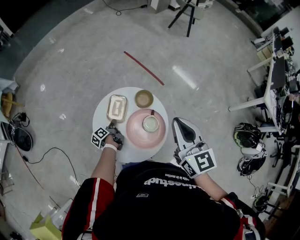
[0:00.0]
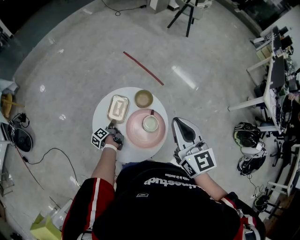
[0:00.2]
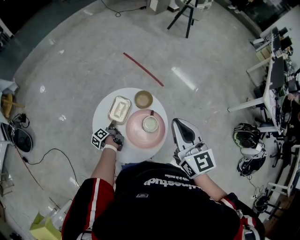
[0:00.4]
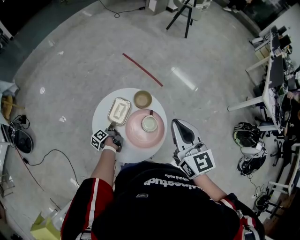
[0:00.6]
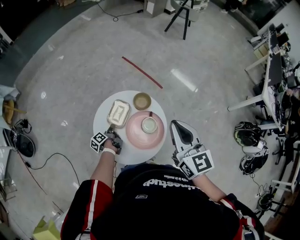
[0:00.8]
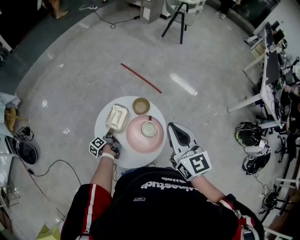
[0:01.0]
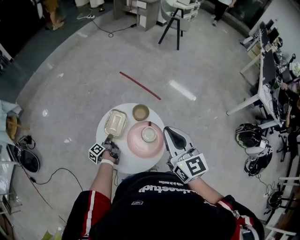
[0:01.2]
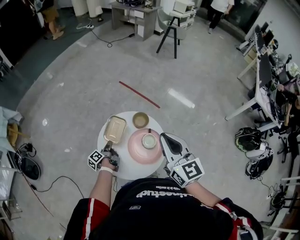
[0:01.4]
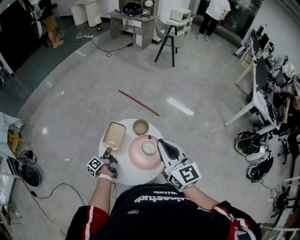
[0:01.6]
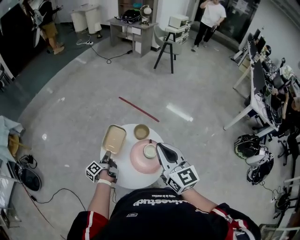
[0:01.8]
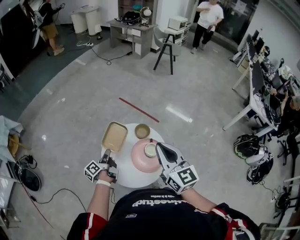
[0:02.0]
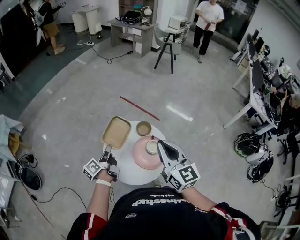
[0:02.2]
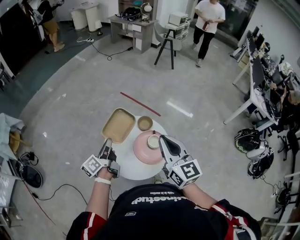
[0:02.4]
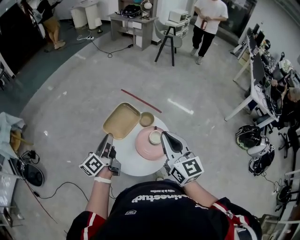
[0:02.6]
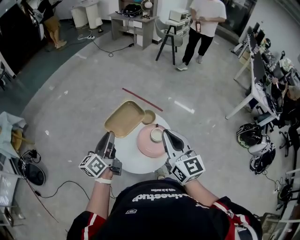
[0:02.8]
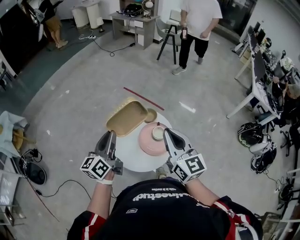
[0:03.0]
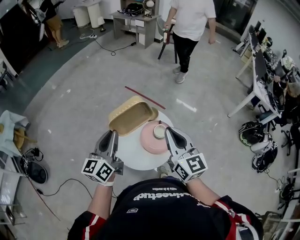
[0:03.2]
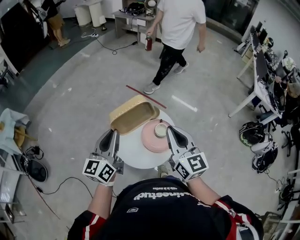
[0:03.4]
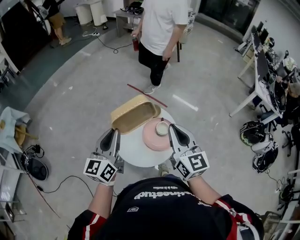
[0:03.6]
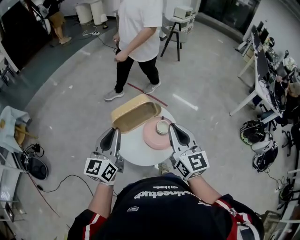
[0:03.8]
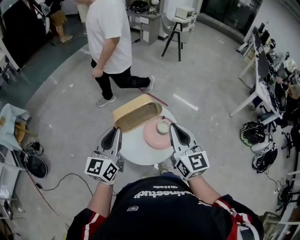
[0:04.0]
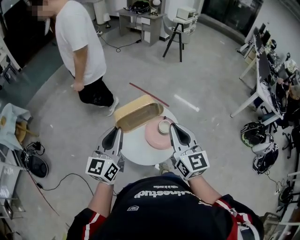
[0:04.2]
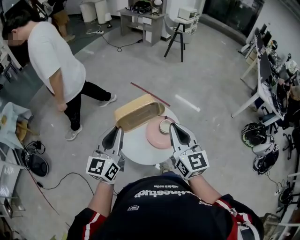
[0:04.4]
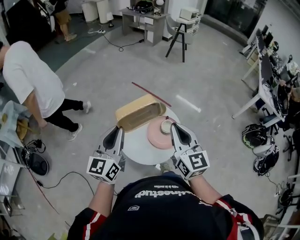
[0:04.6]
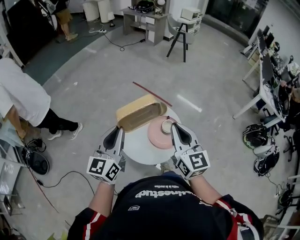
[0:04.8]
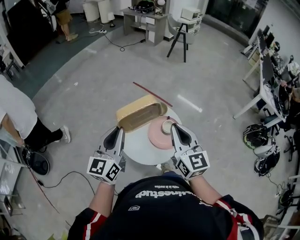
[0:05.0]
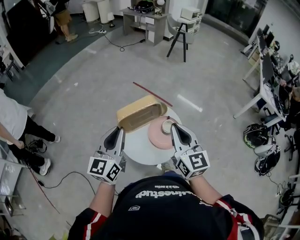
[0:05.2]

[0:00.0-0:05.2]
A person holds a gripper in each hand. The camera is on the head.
0.0 to 1.8 s: The right gripper heads backward and upward, covering about 10 cm, while the left gripper is displaced upward by some 20 cm.
1.8 to 3.4 s: The left gripper shifts roughly 30 cm upward and backward, and twists approximately 60 degrees clockwise, seen from behind; the right gripper heads backward, covering approximately 10 cm.
3.4 to 5.2 s: There are only small adjustments of the grippers.

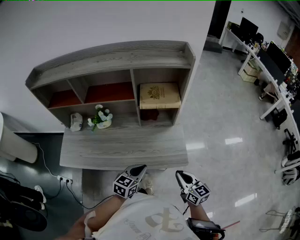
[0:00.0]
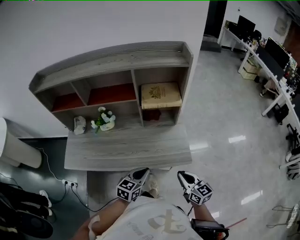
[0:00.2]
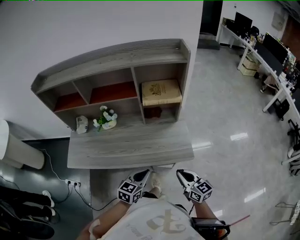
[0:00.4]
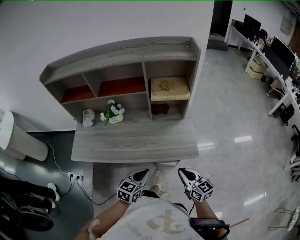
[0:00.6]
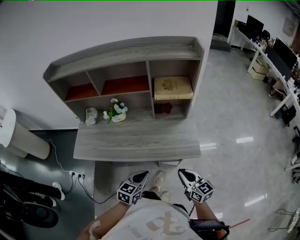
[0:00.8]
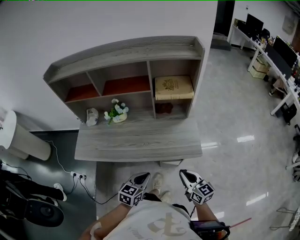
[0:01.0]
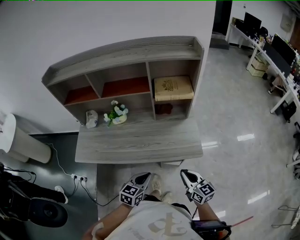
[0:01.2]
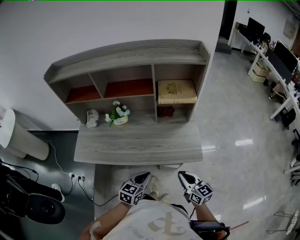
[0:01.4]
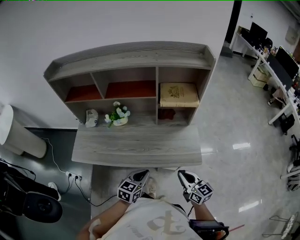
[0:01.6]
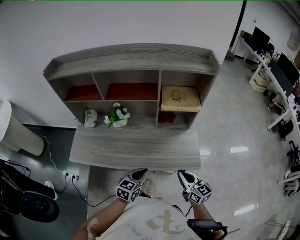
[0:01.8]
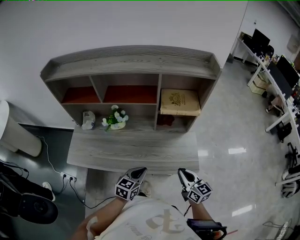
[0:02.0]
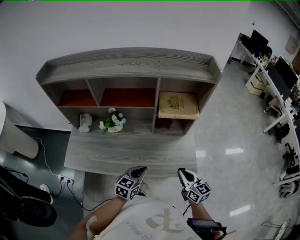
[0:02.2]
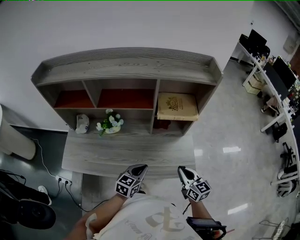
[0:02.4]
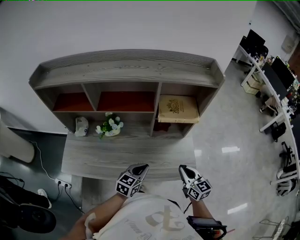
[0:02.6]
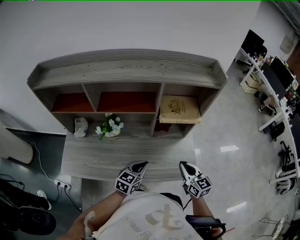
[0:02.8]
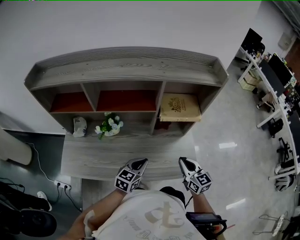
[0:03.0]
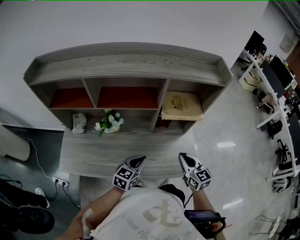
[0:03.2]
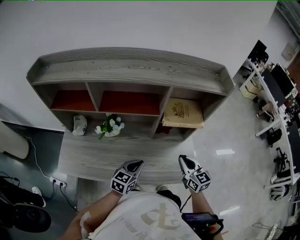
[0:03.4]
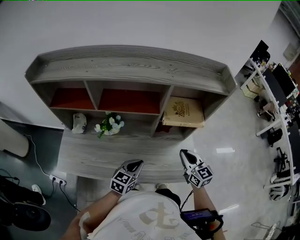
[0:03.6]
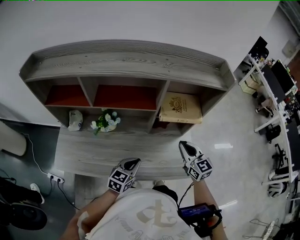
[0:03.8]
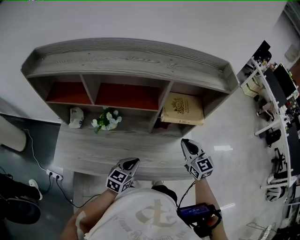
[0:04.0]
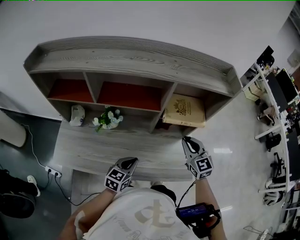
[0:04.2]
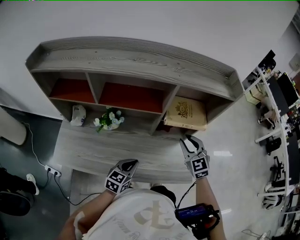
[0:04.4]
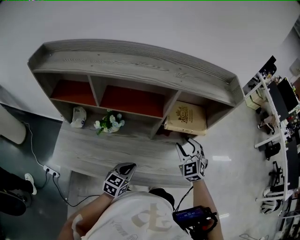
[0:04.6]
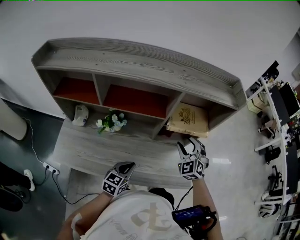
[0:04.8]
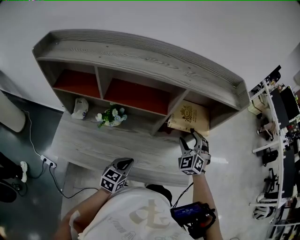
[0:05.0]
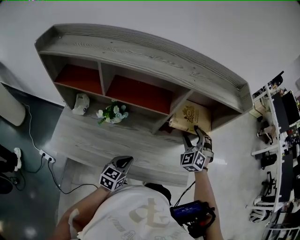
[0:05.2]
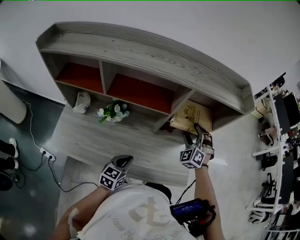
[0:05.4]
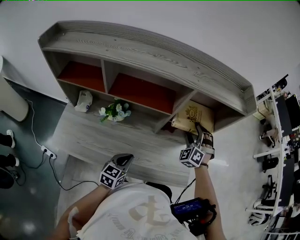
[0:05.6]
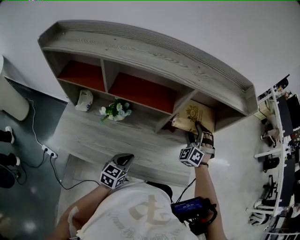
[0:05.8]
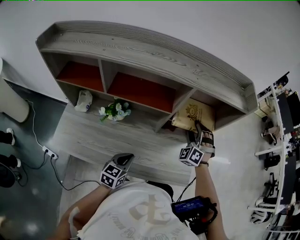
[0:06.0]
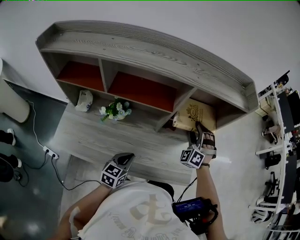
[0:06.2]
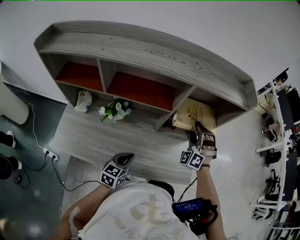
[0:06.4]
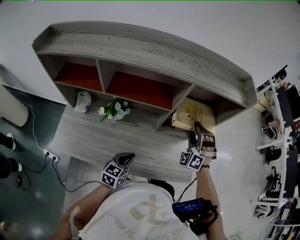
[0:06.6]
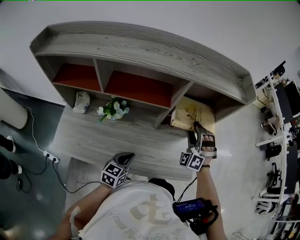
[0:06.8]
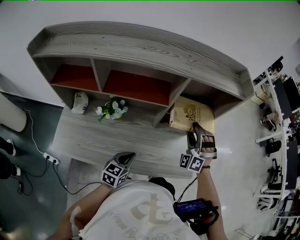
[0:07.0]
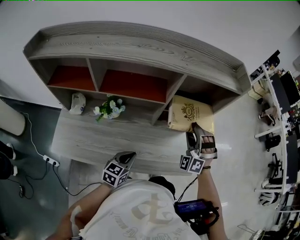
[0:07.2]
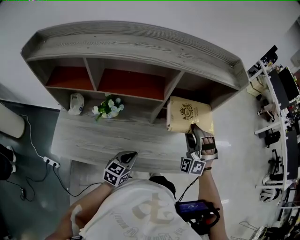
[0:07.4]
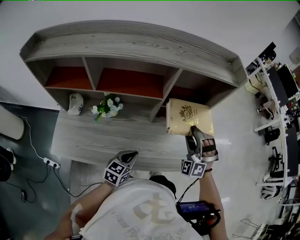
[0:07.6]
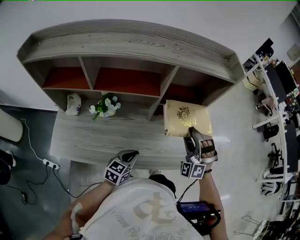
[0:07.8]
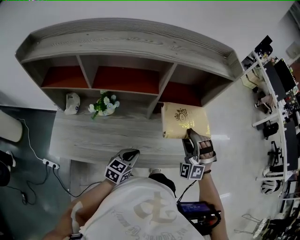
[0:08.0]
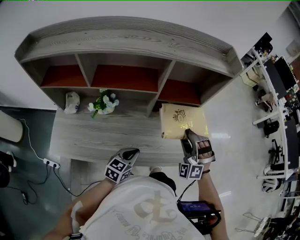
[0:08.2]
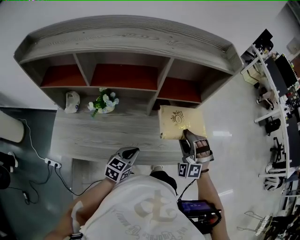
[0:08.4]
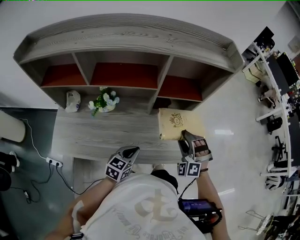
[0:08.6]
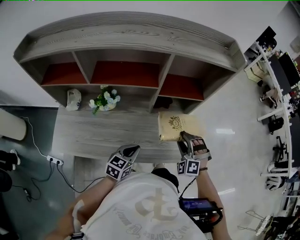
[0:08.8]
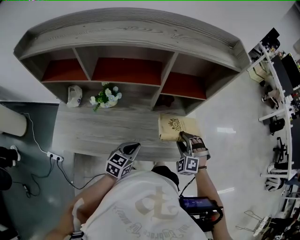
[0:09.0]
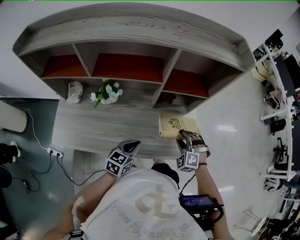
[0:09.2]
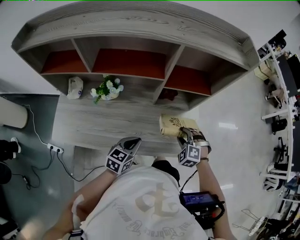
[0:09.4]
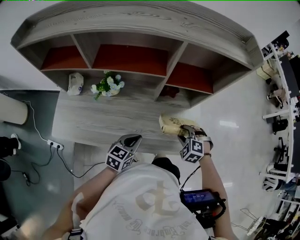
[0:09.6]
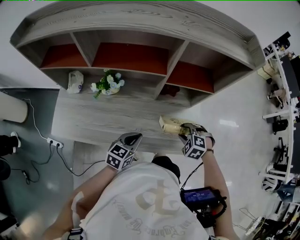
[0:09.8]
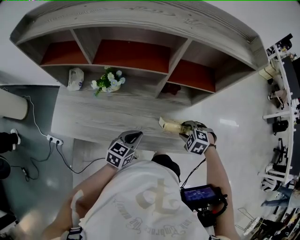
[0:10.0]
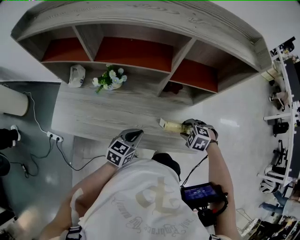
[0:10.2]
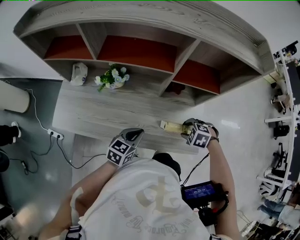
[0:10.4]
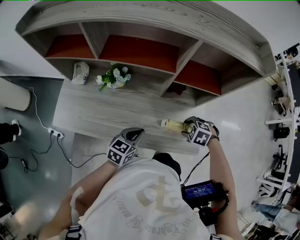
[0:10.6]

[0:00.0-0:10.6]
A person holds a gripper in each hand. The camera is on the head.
0.0 to 1.6 s: The right gripper goes roughly 10 cm to the left. Meanwhile the left gripper heads to the left and backward, covering approximately 10 cm.
1.6 to 3.0 s: The grippers both shift forward by some 15 cm.
3.0 to 4.6 s: The left gripper shifts by some 5 cm. Meanwhile the right gripper moves forward, roughly 15 cm, twists approximately 50 degrees counterclockwise, seen from behind, and opens its fingers.
4.6 to 6.0 s: The right gripper is displaced forward by some 10 cm, and changes its angle by roughly 40 degrees.
6.0 to 7.6 s: The right gripper travels backward by some 10 cm.
7.6 to 9.0 s: The right gripper shifts roughly 15 cm downward, and rotates some 30 degrees.
9.0 to 10.6 s: The right gripper is displaced downward by about 5 cm, and angles its fingers downward, by about 40 degrees.

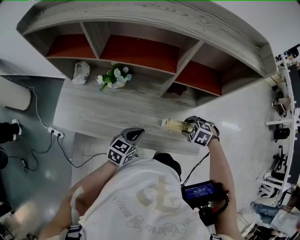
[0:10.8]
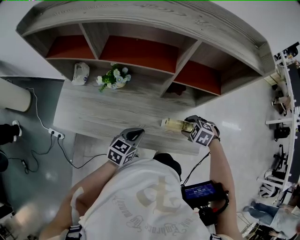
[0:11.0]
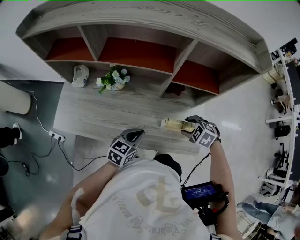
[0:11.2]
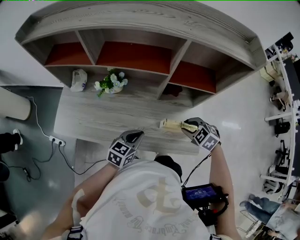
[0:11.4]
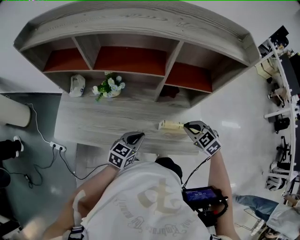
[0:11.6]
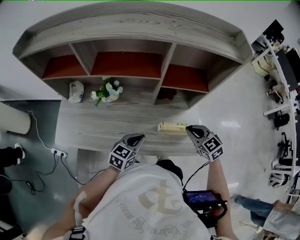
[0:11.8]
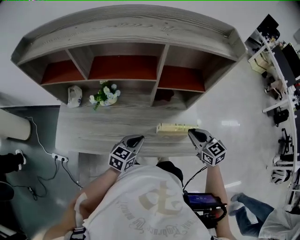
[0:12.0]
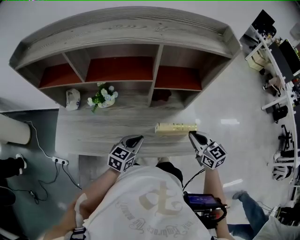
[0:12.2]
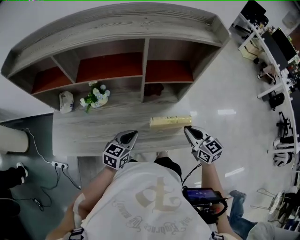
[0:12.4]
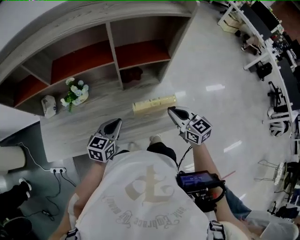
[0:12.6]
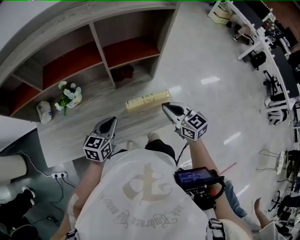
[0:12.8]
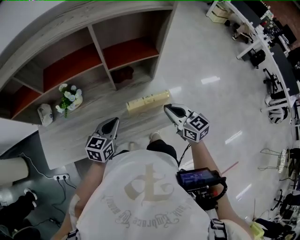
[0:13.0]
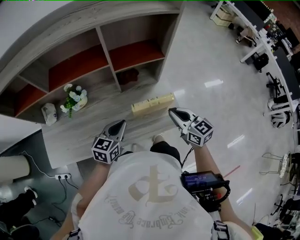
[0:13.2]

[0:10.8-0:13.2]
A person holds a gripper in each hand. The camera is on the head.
10.8 to 12.0 s: The right gripper is displaced upward by approximately 10 cm, tilts its fingers about 50 degrees upward, and closes.
12.0 to 13.2 s: The right gripper is displaced backward by approximately 5 cm.

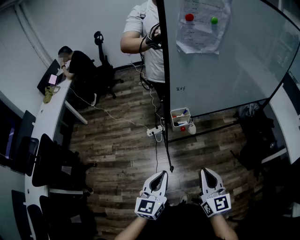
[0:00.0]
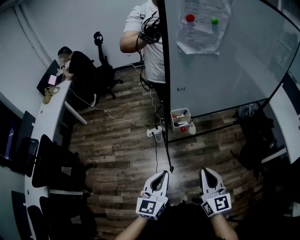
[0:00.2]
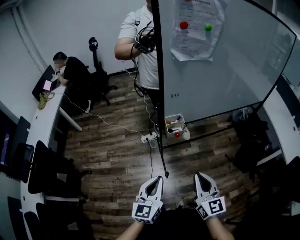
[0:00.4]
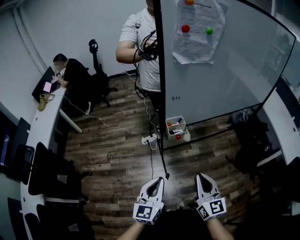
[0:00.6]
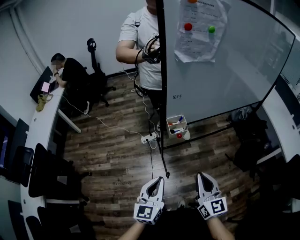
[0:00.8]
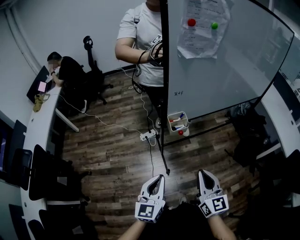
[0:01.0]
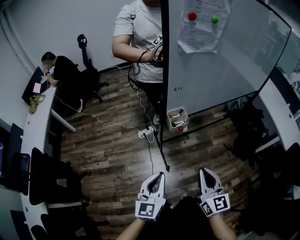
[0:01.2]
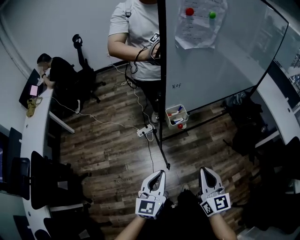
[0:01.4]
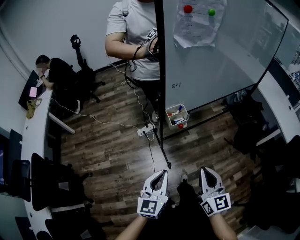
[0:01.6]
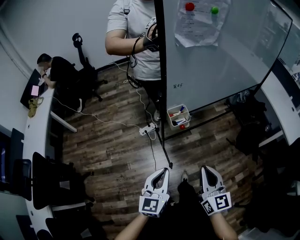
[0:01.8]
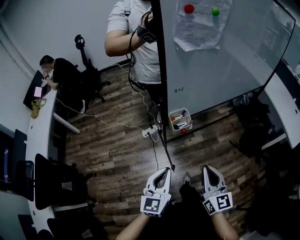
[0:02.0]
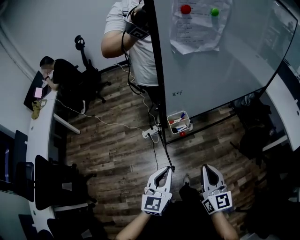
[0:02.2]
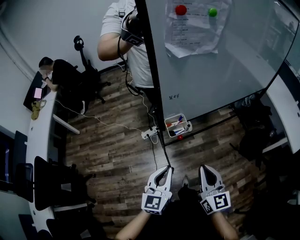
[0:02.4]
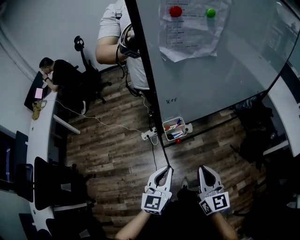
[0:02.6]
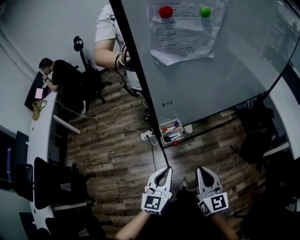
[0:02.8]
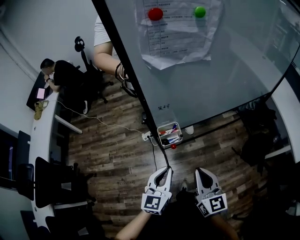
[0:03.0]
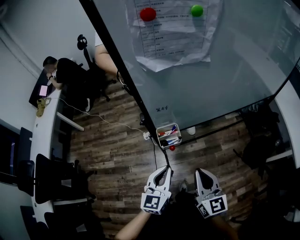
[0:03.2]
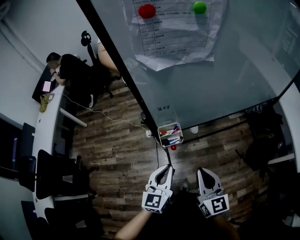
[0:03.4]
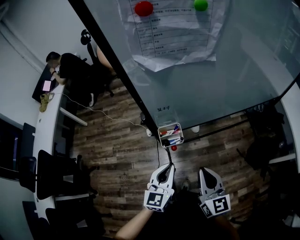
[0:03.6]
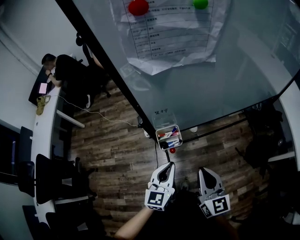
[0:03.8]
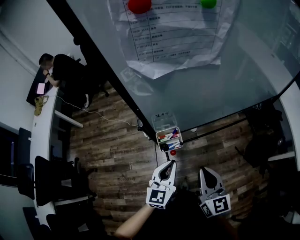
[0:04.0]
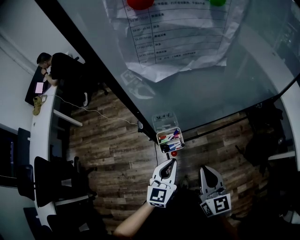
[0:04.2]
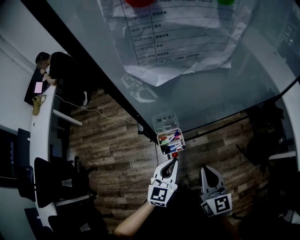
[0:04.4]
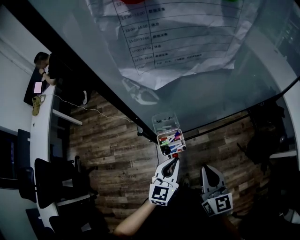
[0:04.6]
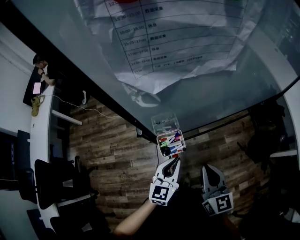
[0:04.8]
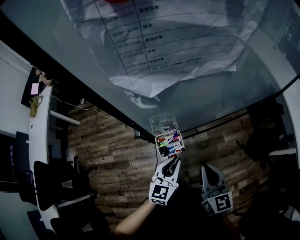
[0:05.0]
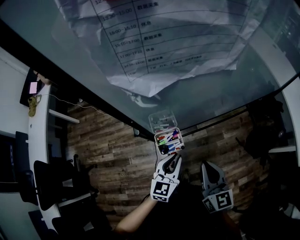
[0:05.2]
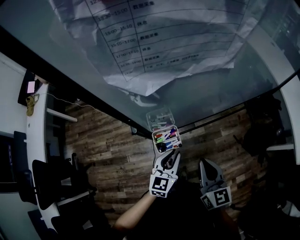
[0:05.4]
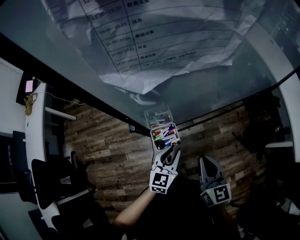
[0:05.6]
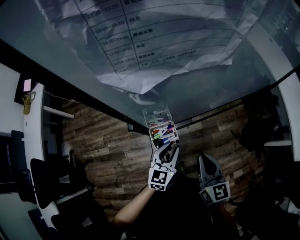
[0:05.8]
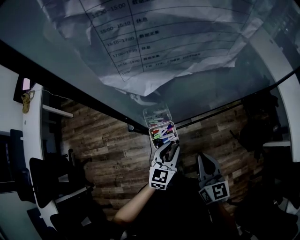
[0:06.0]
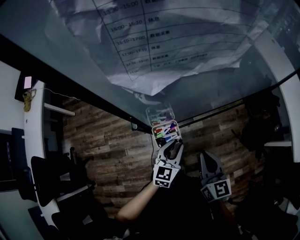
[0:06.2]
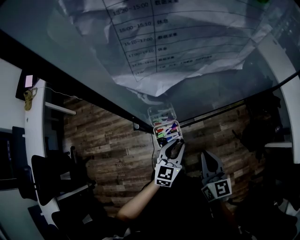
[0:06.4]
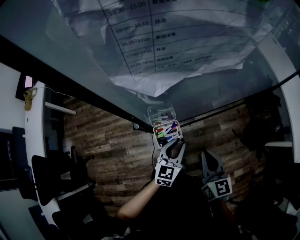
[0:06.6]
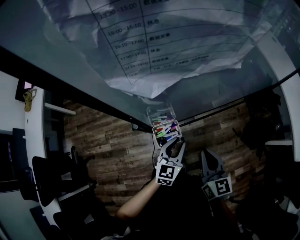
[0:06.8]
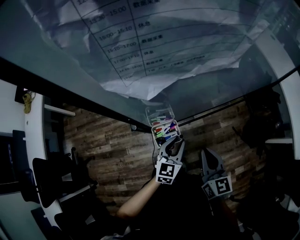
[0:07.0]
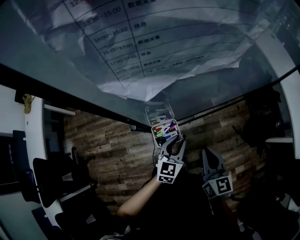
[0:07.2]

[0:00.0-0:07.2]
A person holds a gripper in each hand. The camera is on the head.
0.0 to 1.4 s: The grippers stay close to where they were, moving slightly.
1.4 to 2.8 s: The left gripper travels forward and to the right by approximately 15 cm. The right gripper travels forward by some 15 cm.
2.8 to 4.4 s: The right gripper moves forward, about 10 cm; the left gripper moves forward and downward, about 10 cm.
4.4 to 5.8 s: The left gripper changes place by roughly 5 cm.
5.8 to 7.2 s: There are only small adjustments of the grippers.
